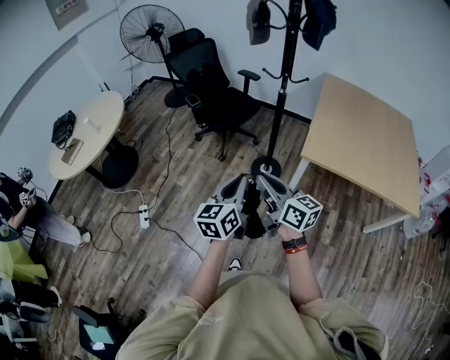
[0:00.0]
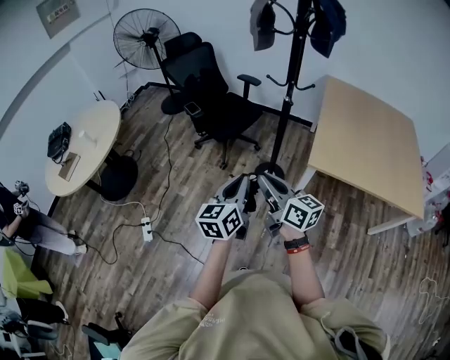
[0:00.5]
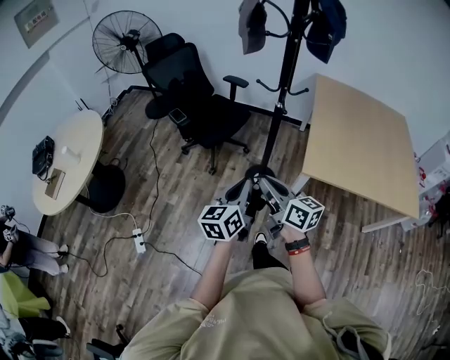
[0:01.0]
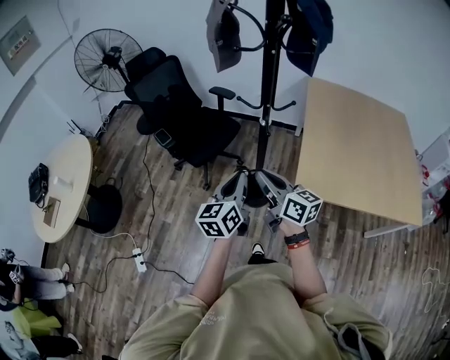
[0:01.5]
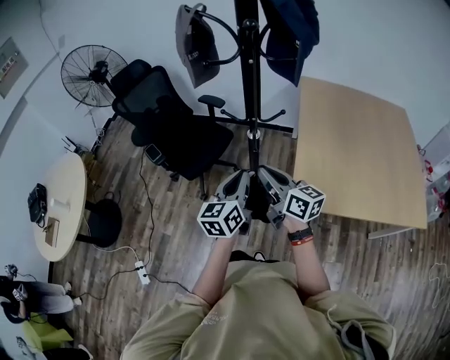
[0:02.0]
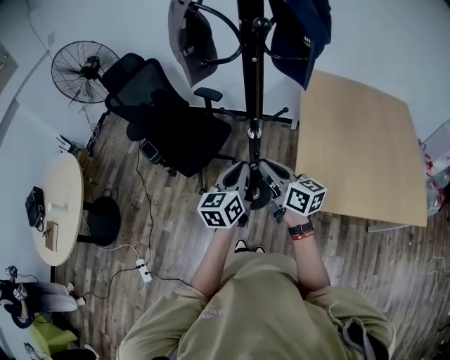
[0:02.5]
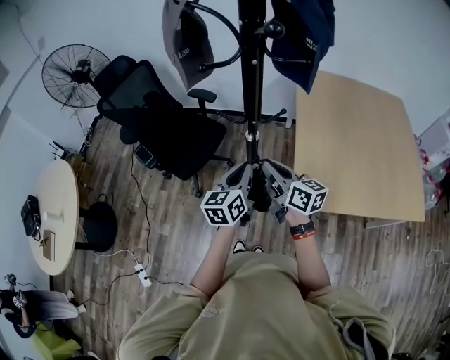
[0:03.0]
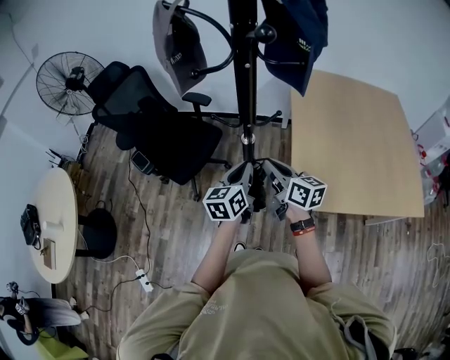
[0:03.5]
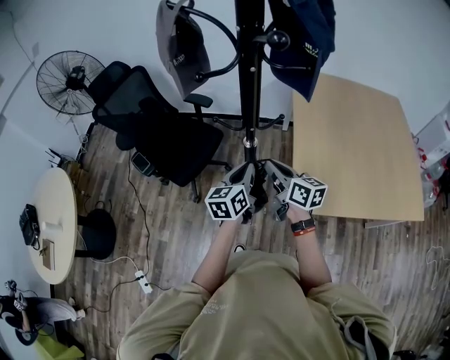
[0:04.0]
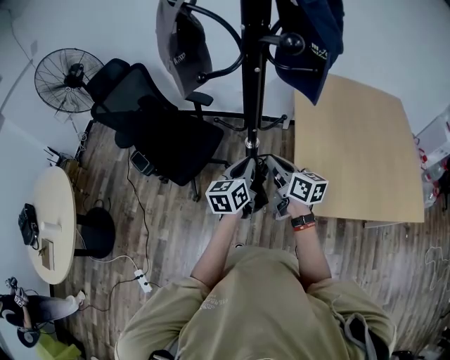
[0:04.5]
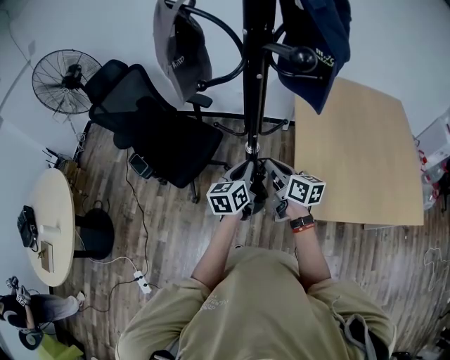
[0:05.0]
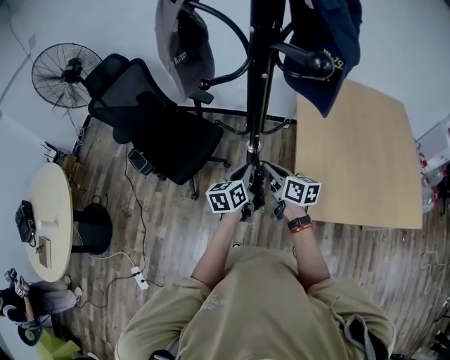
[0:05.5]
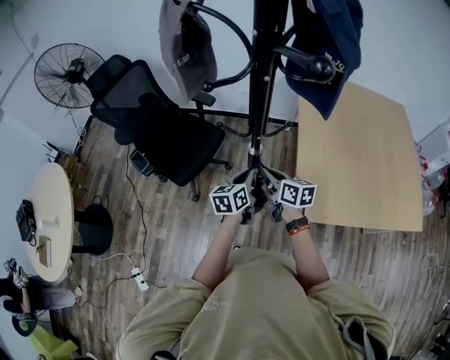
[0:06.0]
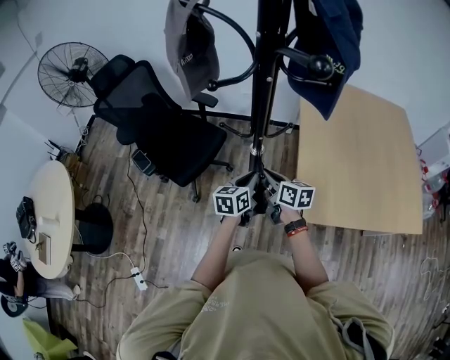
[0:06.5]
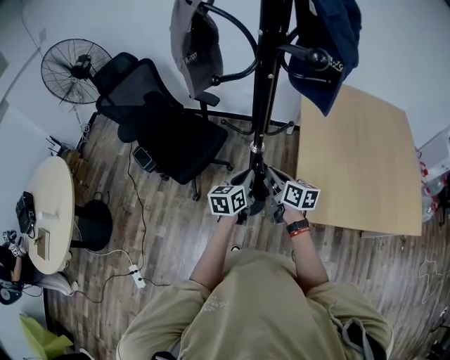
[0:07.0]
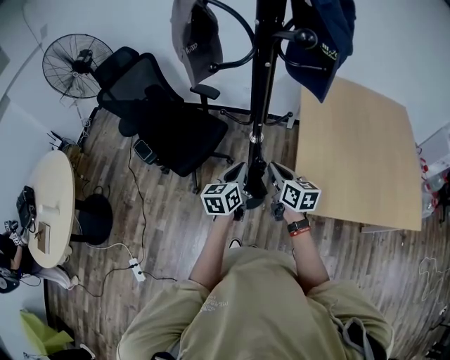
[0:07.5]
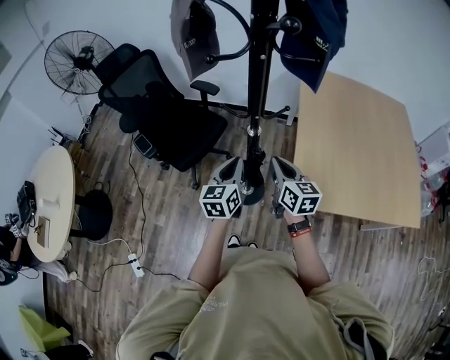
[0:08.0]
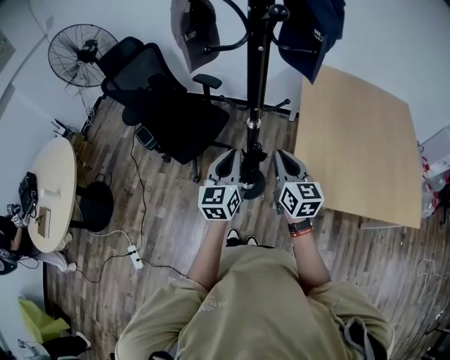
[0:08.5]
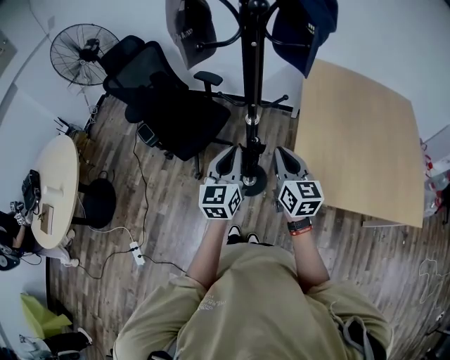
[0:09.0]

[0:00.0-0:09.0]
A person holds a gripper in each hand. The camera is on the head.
0:00.0 to 0:02.0: The two grippers travel together, forward and to the right, roughly 40 cm.
0:02.0 to 0:04.5: The grippers both shift forward and downward by some 15 cm.
0:04.5 to 0:07.0: The two grippers go roughly 5 cm downward.
0:07.0 to 0:09.0: Both grippers travel together upward and backward, about 15 cm. The left gripper swivels approximately 30 degrees; the right gripper rotates about 30 degrees.

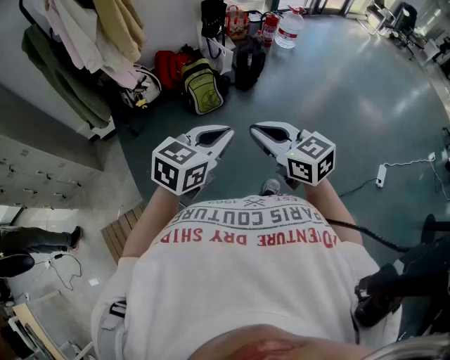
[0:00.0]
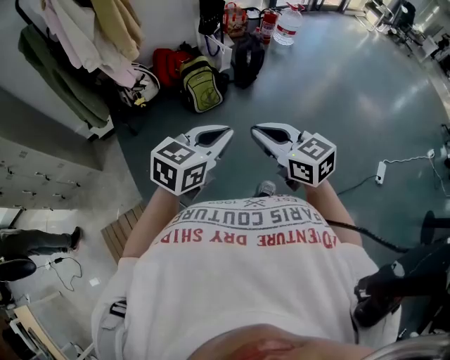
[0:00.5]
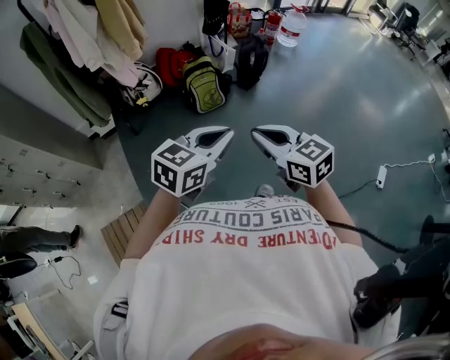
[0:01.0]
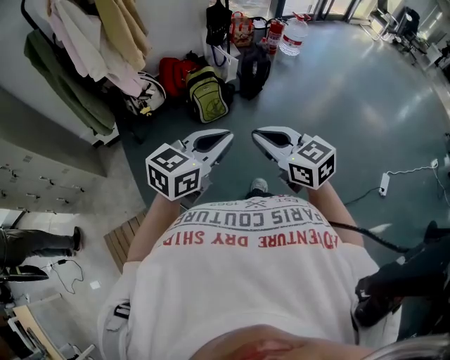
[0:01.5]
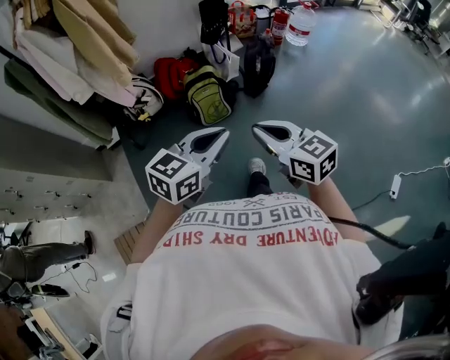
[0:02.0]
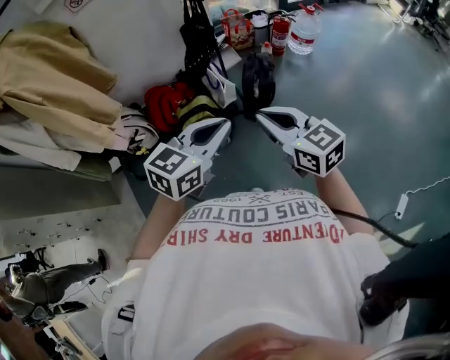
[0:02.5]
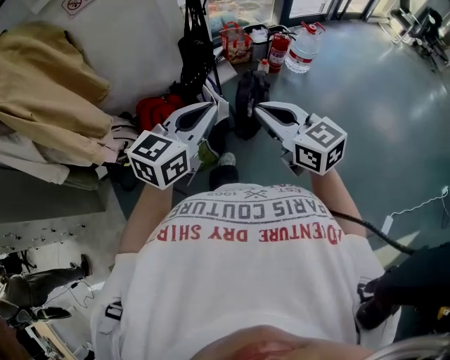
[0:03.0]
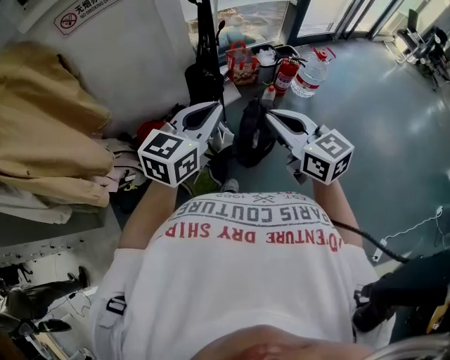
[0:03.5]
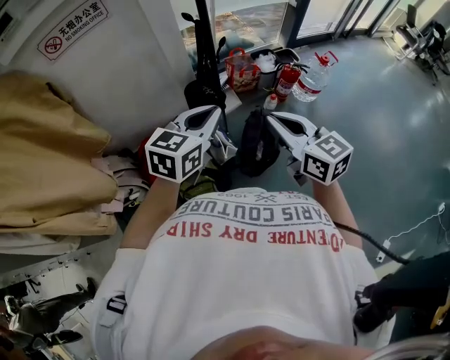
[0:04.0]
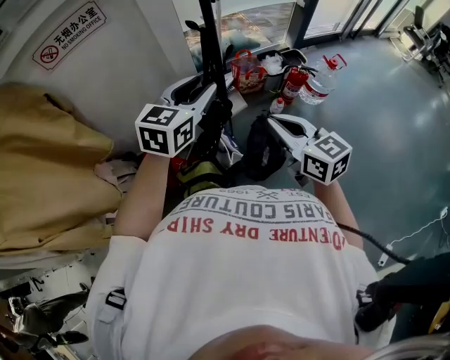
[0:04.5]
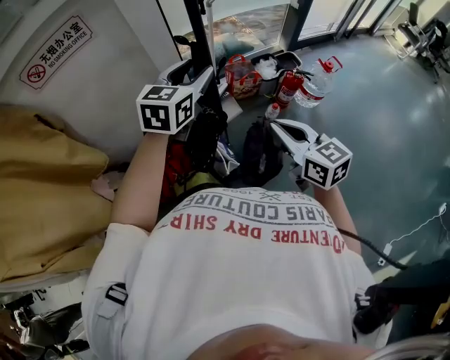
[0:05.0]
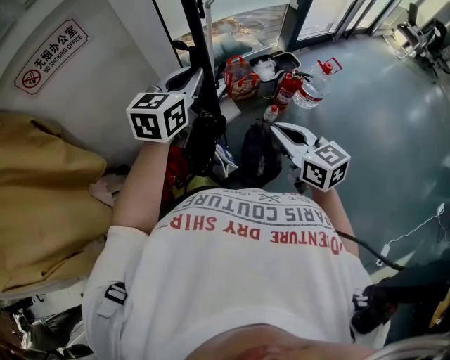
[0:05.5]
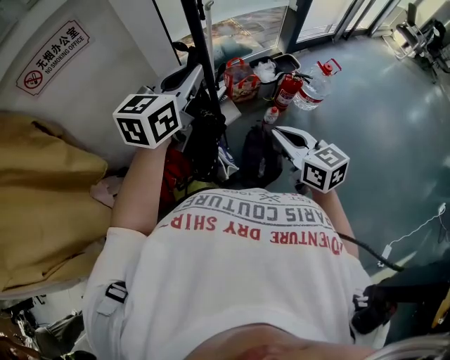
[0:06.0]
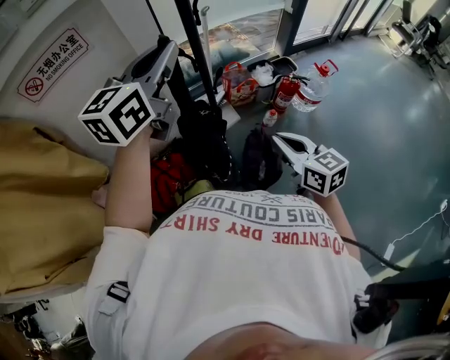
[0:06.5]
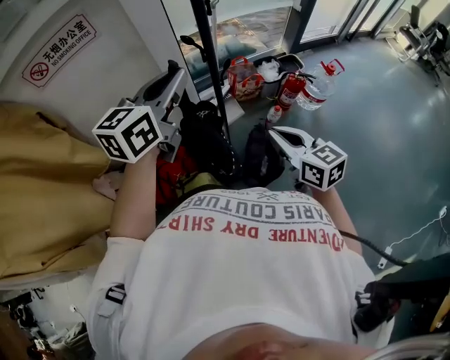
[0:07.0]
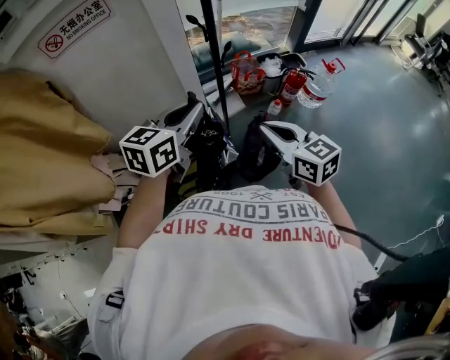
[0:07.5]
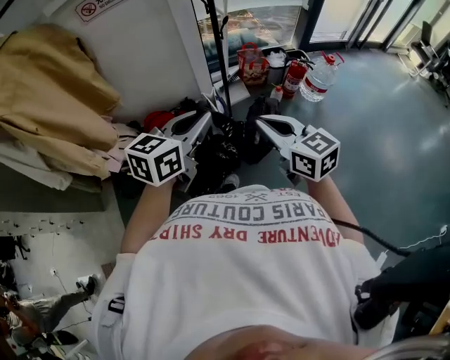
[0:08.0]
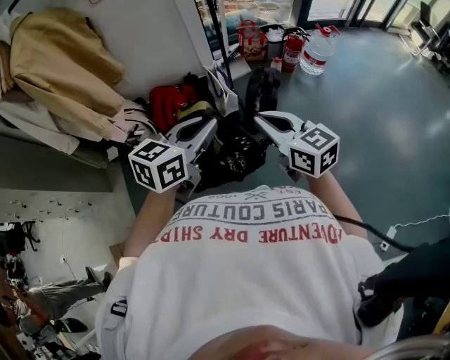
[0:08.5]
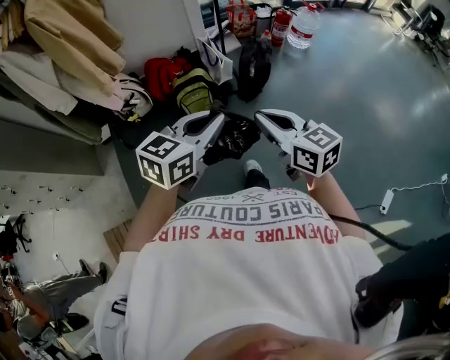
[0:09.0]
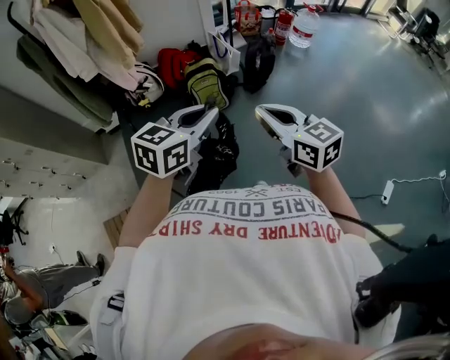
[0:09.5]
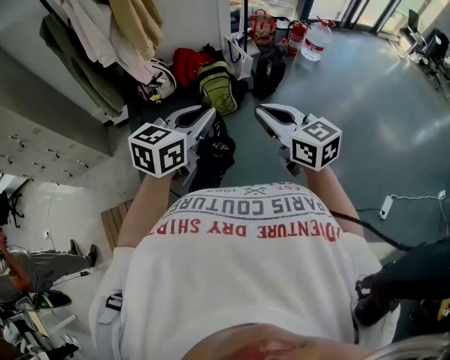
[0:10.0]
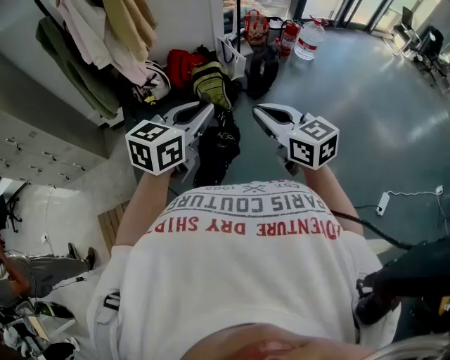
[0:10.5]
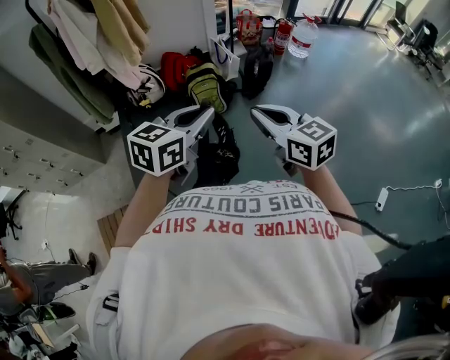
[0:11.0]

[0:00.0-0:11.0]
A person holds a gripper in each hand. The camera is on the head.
0:00.0 to 0:02.0: Both grippers move forward, approximately 20 cm.
0:02.0 to 0:03.5: Both grippers are carried forward, about 60 cm.
0:03.5 to 0:05.5: The right gripper moves forward, roughly 20 cm, while the left gripper shifts approximately 35 cm forward, and opens, then closes again.
0:05.5 to 0:07.5: The right gripper shifts some 10 cm backward. Meanwhile the left gripper is displaced backward by about 20 cm.
0:07.5 to 0:09.0: The pair of grippers is taken backward, approximately 60 cm.
0:09.0 to 0:11.0: The left gripper travels backward and to the left by roughly 25 cm. The right gripper shifts about 20 cm backward.

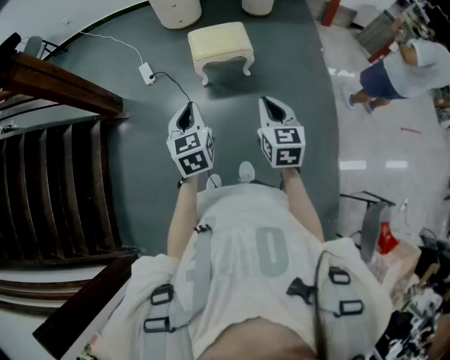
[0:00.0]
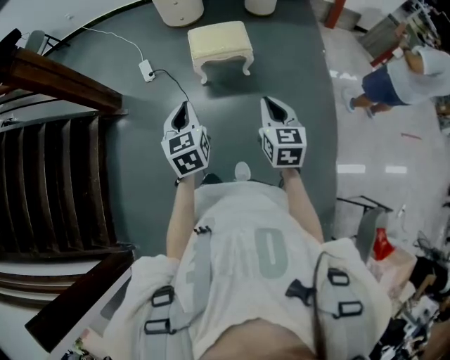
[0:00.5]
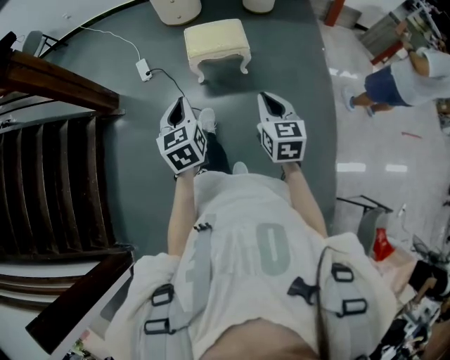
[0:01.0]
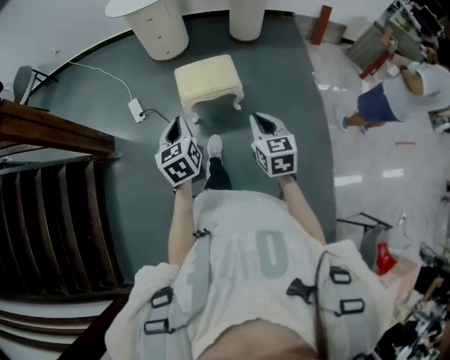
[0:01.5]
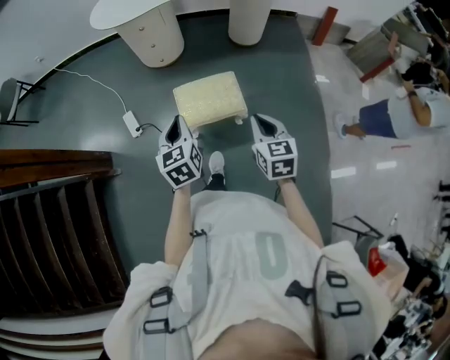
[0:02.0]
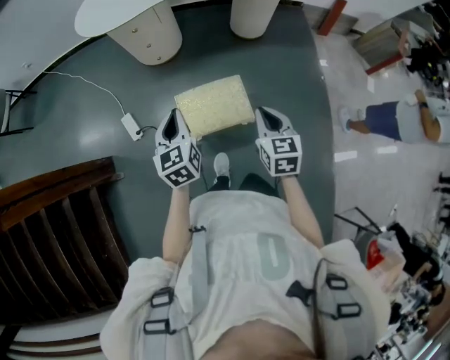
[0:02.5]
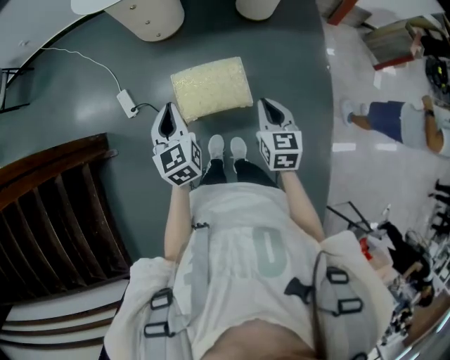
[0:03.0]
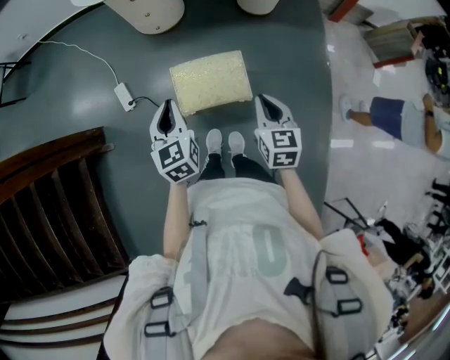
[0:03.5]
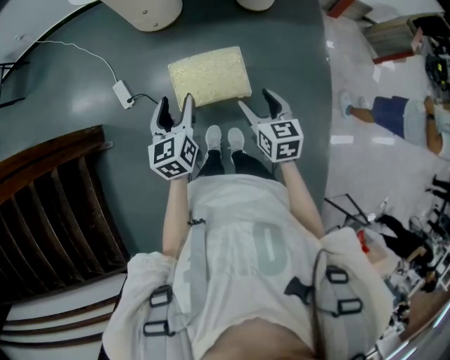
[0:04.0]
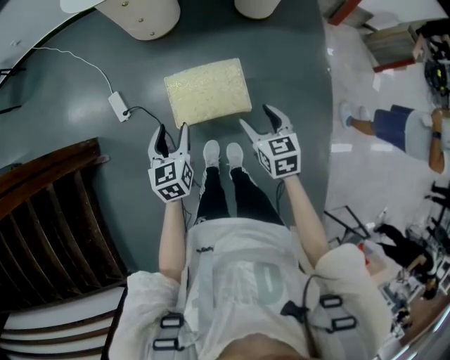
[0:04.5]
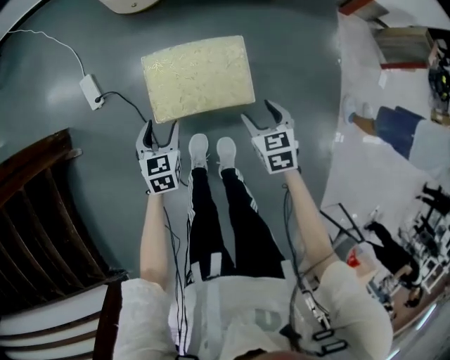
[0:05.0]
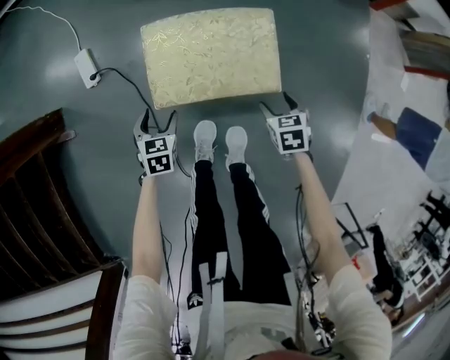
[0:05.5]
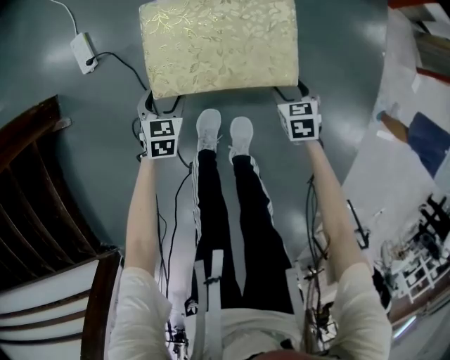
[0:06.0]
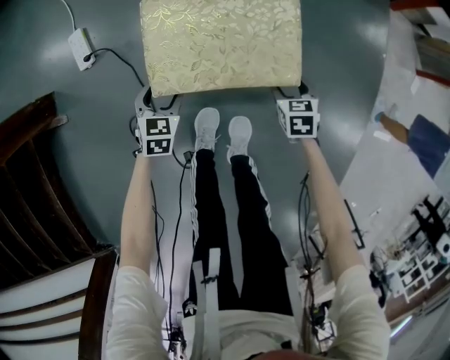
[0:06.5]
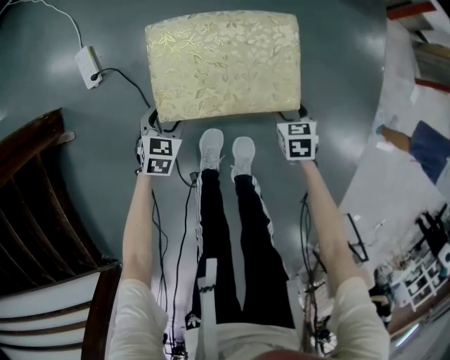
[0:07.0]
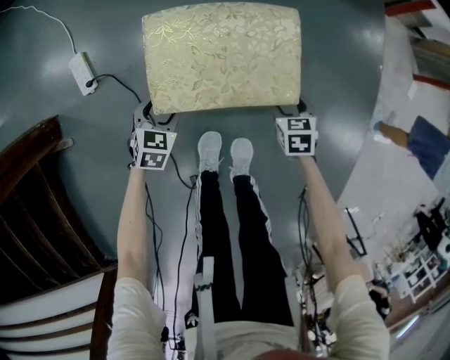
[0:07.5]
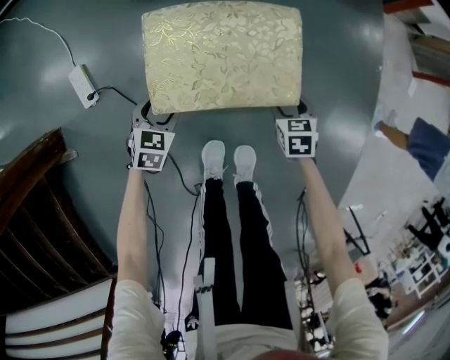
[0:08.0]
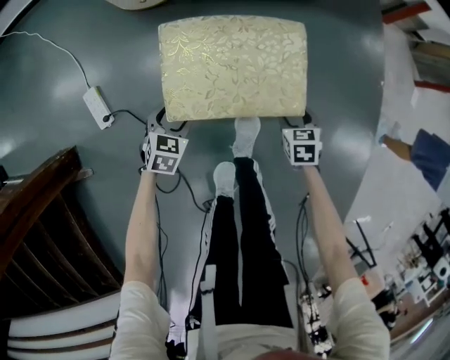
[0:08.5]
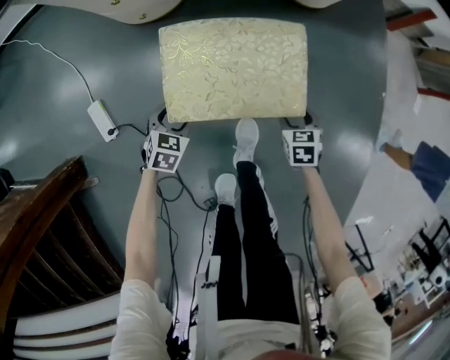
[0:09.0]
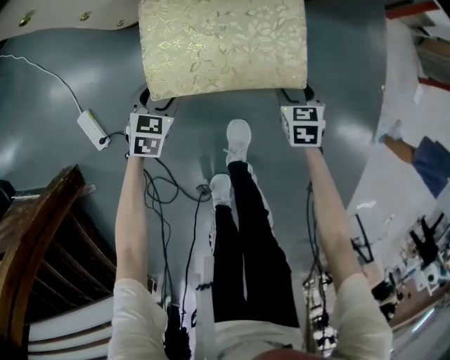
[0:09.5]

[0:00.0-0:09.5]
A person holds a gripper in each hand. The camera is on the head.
0:00.0 to 0:02.0: The two grippers travel together, forward, some 40 cm.
0:02.0 to 0:04.0: The grippers both shift forward and downward by approximately 15 cm. The right gripper opens its fingers, while the left gripper opens.
0:04.0 to 0:05.5: The grippers both shift downward by approximately 50 cm. The right gripper rotates some 30 degrees. Meanwhile the left gripper tilts its fingers some 30 degrees downward.
0:05.5 to 0:07.5: Both grippers travel together downward, some 5 cm.
0:07.5 to 0:09.5: The grippers move only a little.
